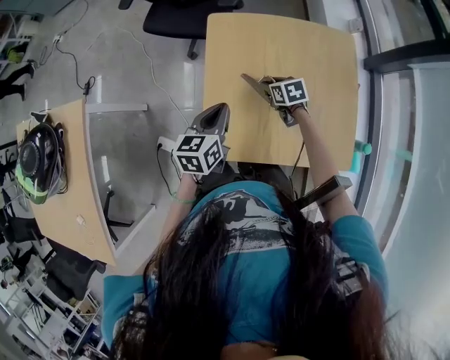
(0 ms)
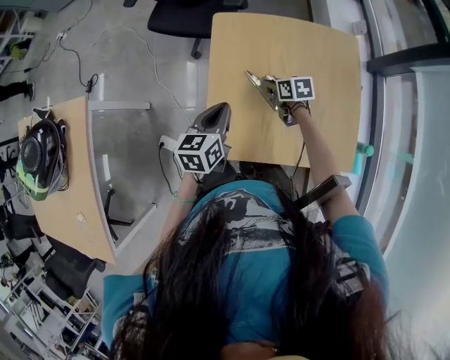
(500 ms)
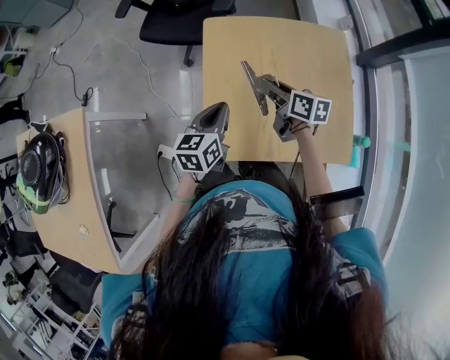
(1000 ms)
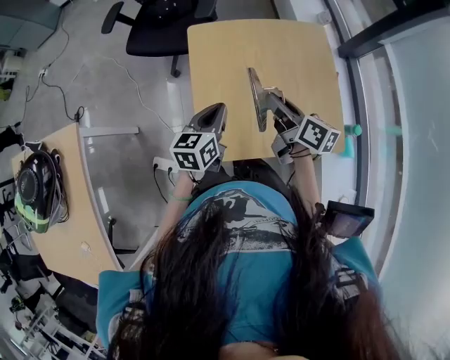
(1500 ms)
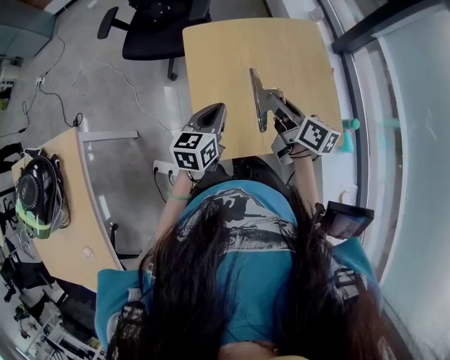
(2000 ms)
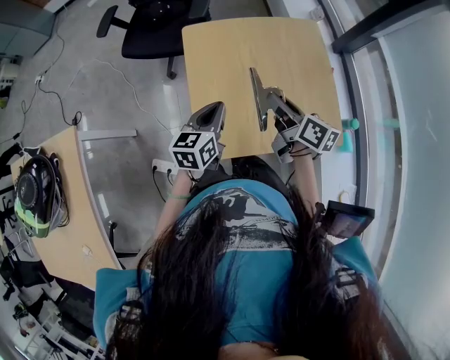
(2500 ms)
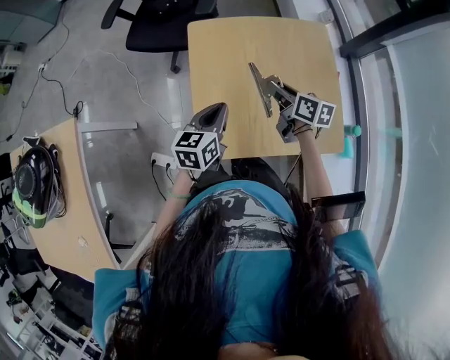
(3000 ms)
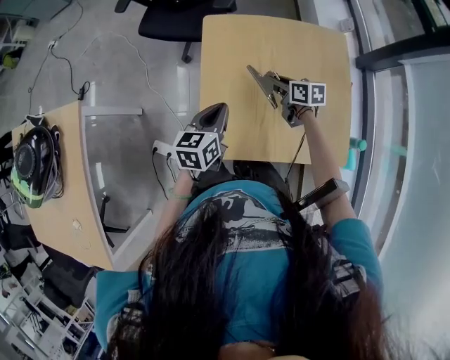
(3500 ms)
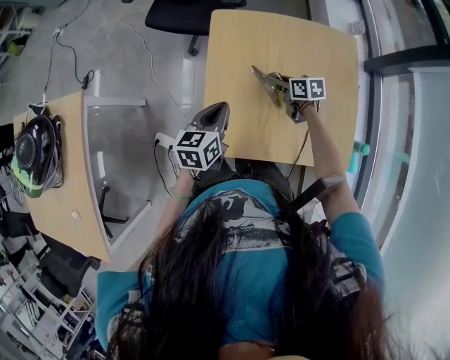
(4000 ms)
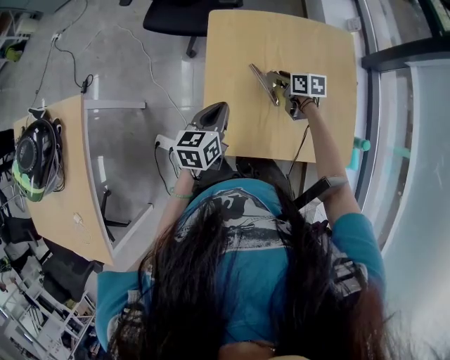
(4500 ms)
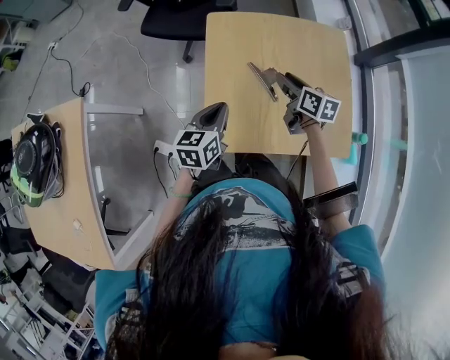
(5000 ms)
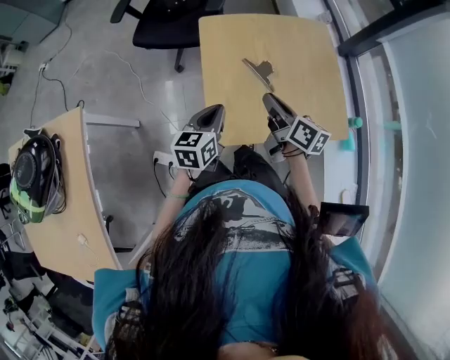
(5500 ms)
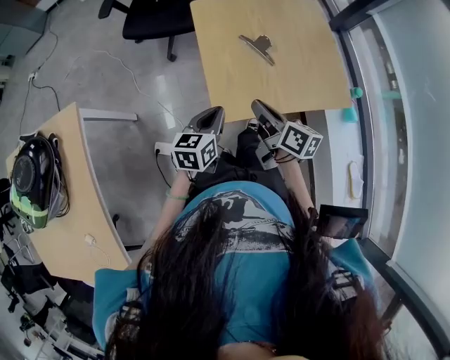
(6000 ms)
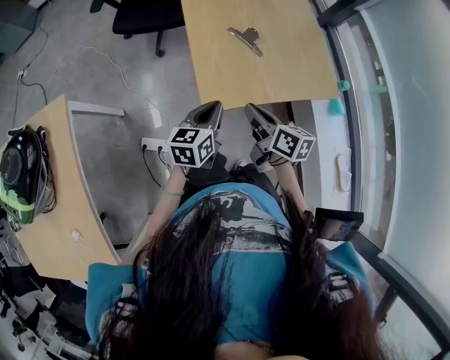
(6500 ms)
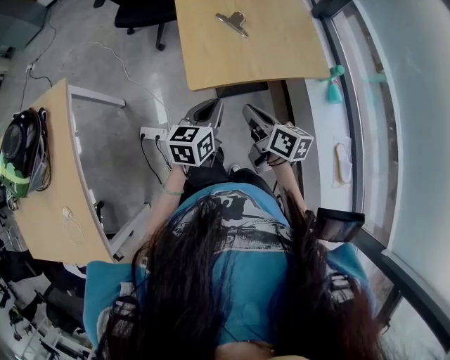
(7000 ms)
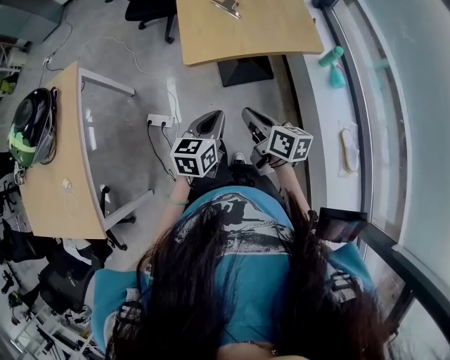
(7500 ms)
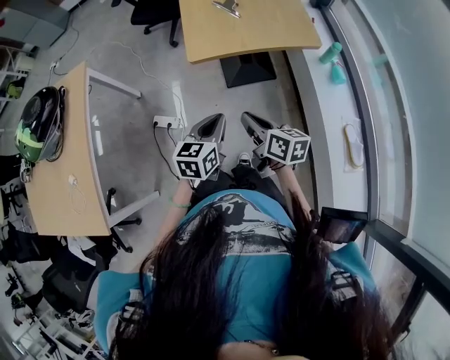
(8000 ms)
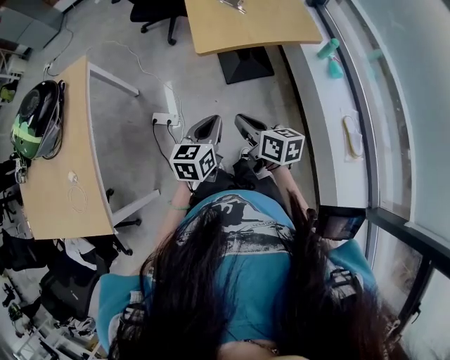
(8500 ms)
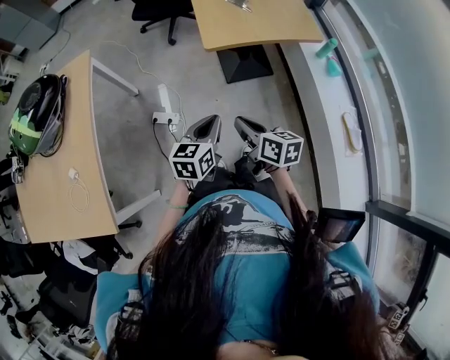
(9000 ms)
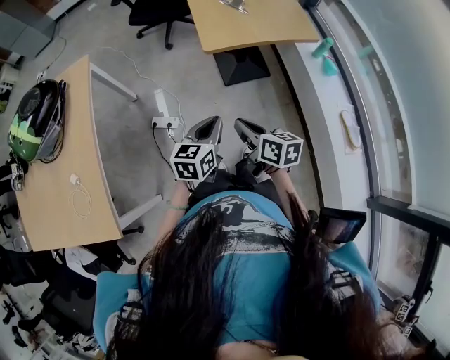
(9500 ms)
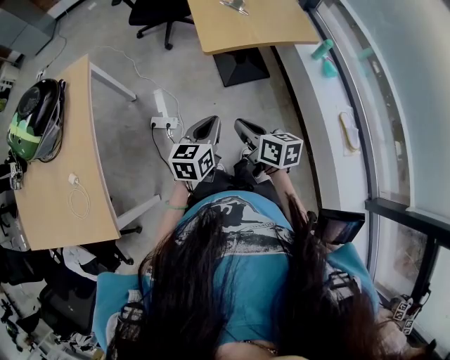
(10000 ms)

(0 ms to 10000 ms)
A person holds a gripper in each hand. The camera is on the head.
0 ms - 2000 ms: The right gripper is displaced upward and backward by about 25 cm, and tilts its fingers roughly 40 degrees upward.
2000 ms - 4000 ms: The left gripper moves some 5 cm. The right gripper heads downward and forward, covering about 25 cm, and changes its angle by roughly 40 degrees.
4000 ms - 6000 ms: The left gripper ends up about 20 cm from where it was; the right gripper ends up some 35 cm from where it was, and swivels some 40 degrees.
6000 ms - 8000 ms: The two grippers go some 35 cm backward.
8000 ms - 10000 ms: The two grippers go roughly 15 cm to the left and backward.

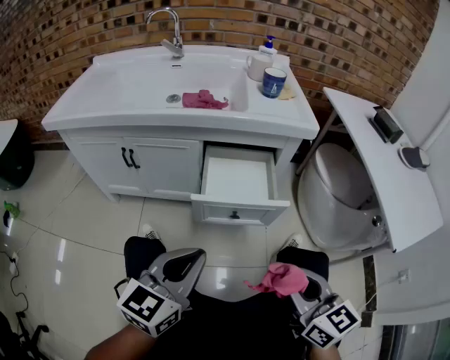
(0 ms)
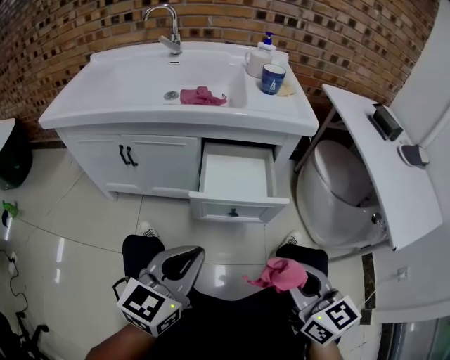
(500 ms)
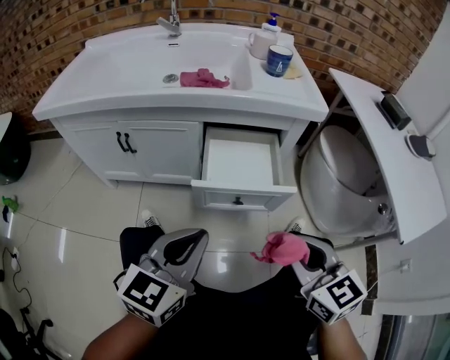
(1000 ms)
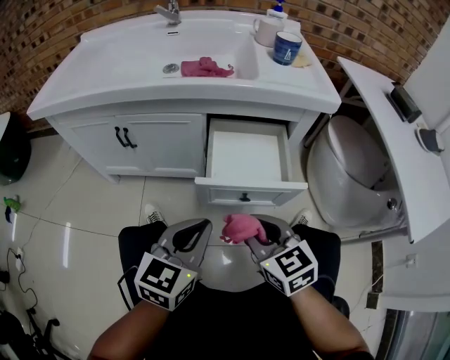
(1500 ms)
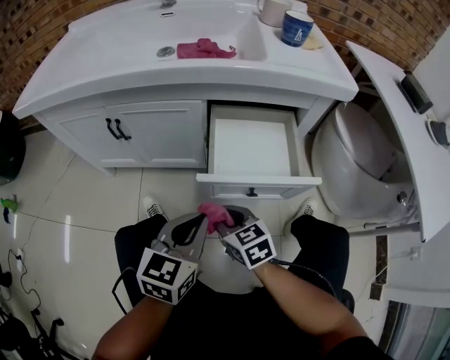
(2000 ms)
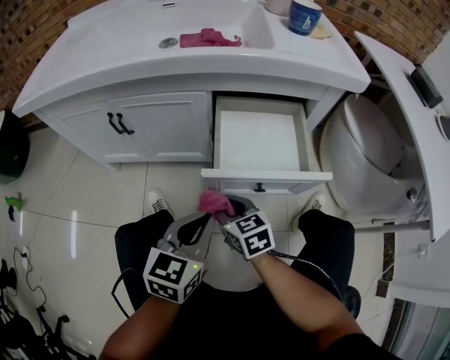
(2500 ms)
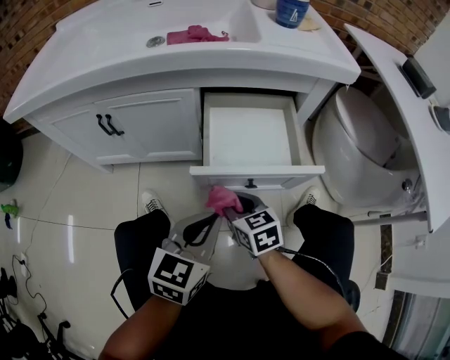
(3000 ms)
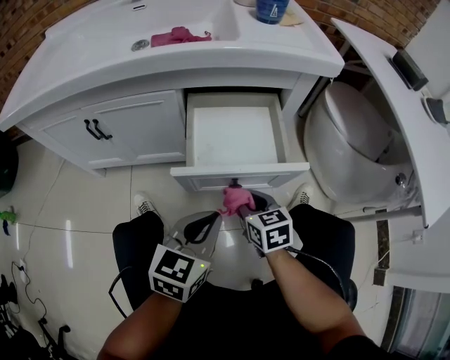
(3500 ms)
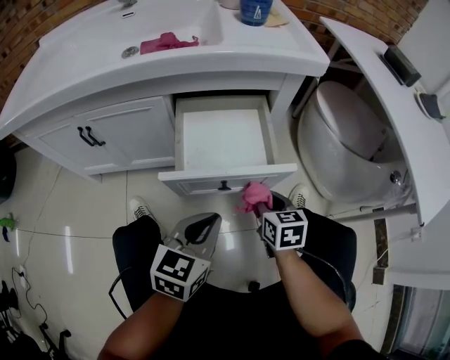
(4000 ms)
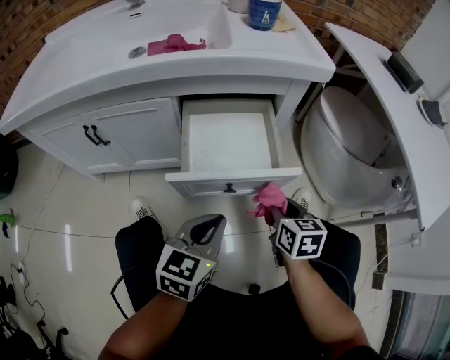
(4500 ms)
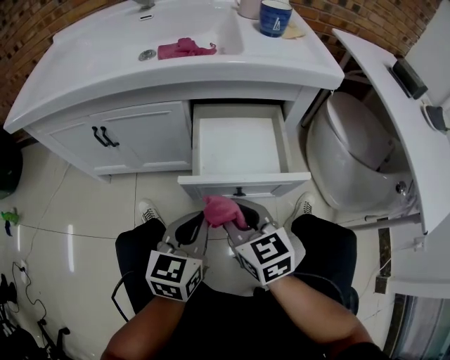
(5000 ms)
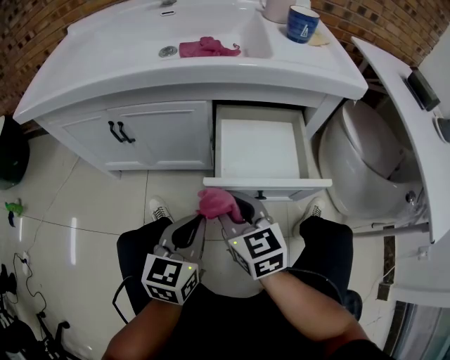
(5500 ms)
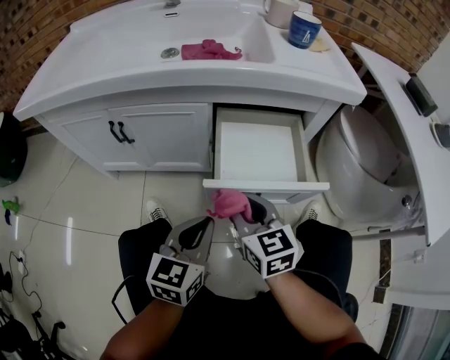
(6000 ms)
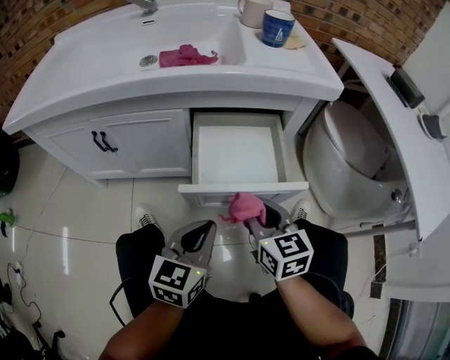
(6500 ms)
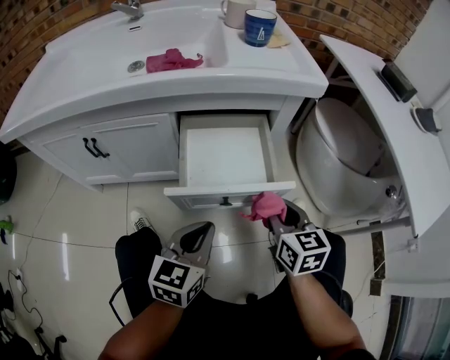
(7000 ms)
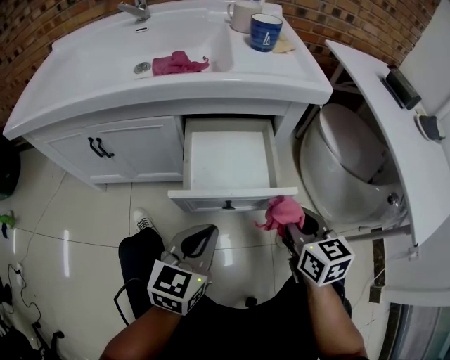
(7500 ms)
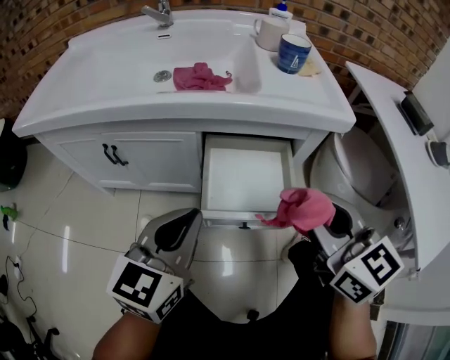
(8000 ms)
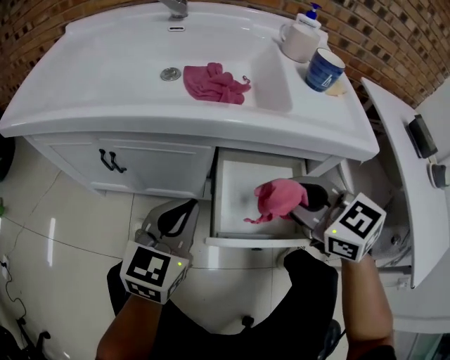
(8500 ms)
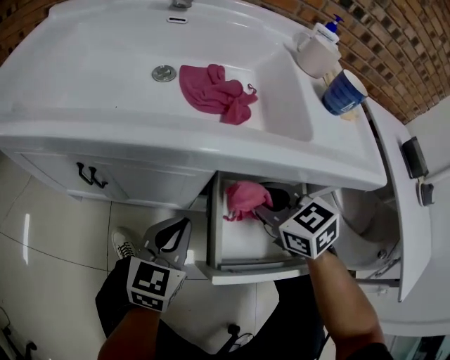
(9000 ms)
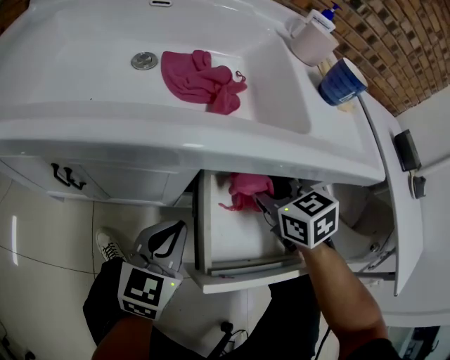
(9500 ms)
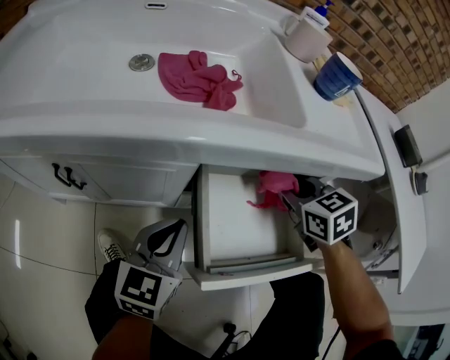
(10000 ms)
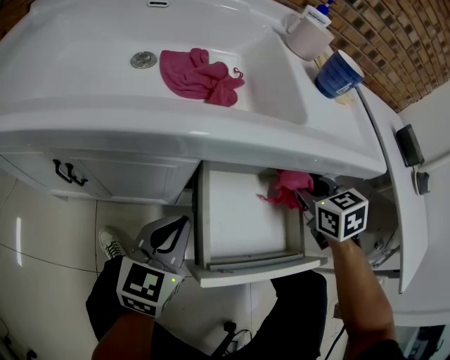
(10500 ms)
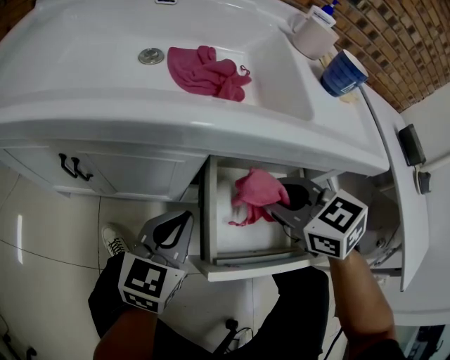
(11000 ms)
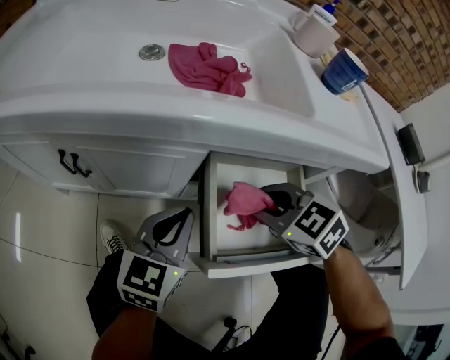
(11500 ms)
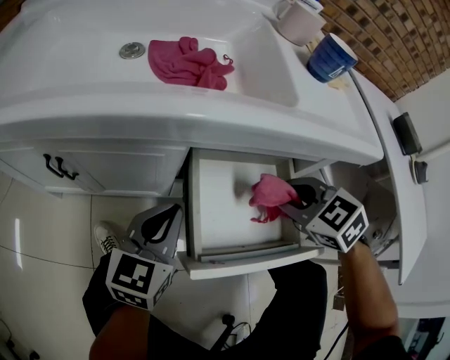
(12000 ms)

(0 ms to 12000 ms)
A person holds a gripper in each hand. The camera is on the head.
0 ms - 2000 ms: The right gripper is displaced downward, to the left and forward by some 35 cm, and swivels some 20 degrees; the left gripper travels downward and forward by about 15 cm.
2000 ms - 4000 ms: The right gripper shifts approximately 20 cm to the right, and turns by about 30 degrees. Meanwhile the left gripper travels to the right by approximately 10 cm.
4000 ms - 6000 ms: The left gripper shifts approximately 10 cm to the left. The right gripper is displaced to the left and upward by some 20 cm, and swivels some 20 degrees.
6000 ms - 8000 ms: The left gripper travels upward and forward by roughly 15 cm. Meanwhile the right gripper travels upward and to the right by about 25 cm.
8000 ms - 10000 ms: The right gripper travels forward and downward by approximately 25 cm, and points its fingers some 30 degrees further downward, while the left gripper goes approximately 20 cm downward and forward.
10000 ms - 12000 ms: The right gripper swings left and right, roughly 15 cm each way, with 2 reversals, and turns by about 20 degrees.

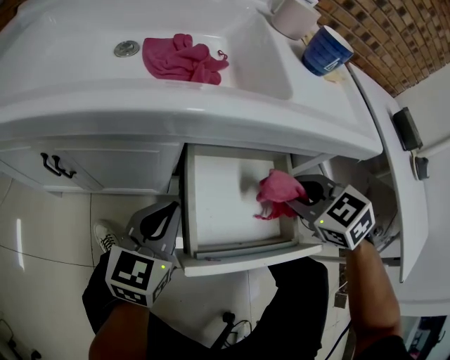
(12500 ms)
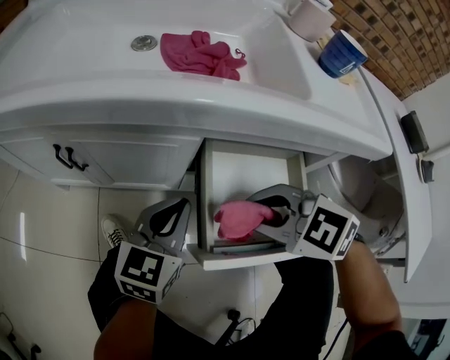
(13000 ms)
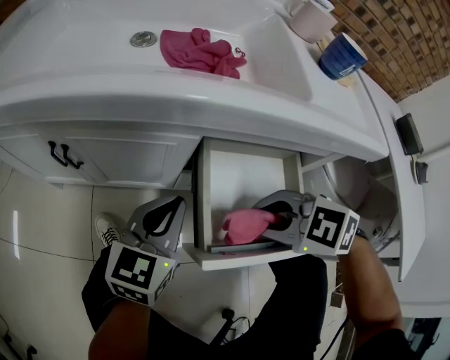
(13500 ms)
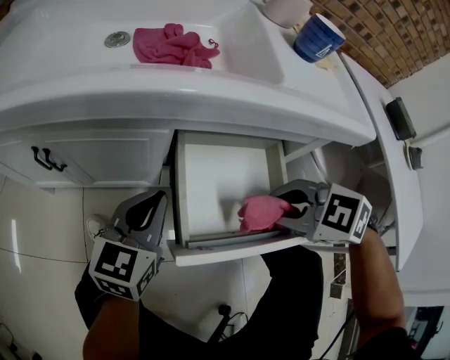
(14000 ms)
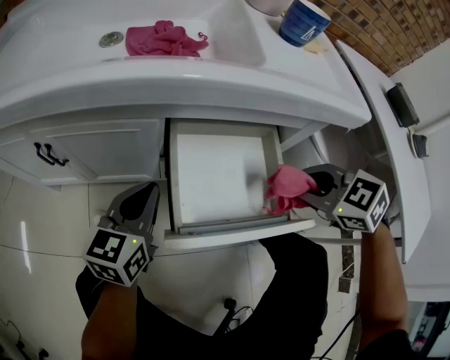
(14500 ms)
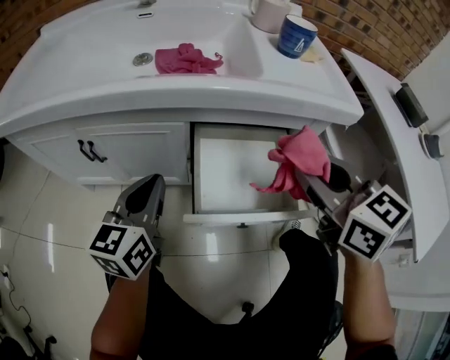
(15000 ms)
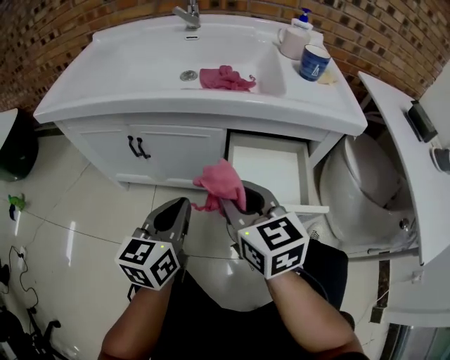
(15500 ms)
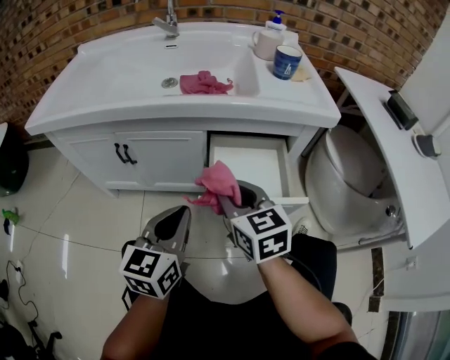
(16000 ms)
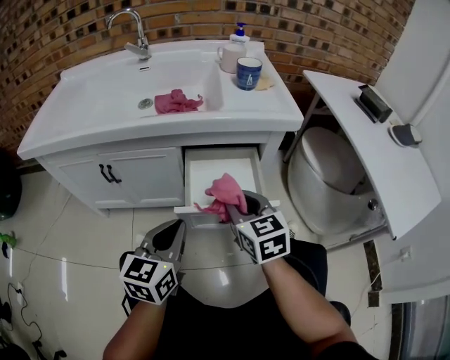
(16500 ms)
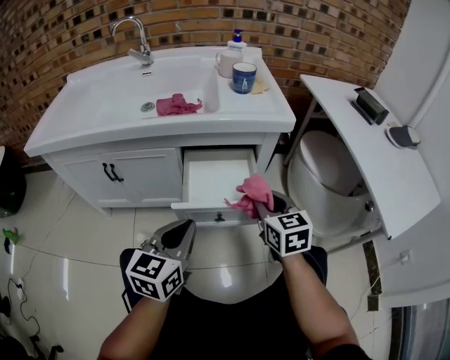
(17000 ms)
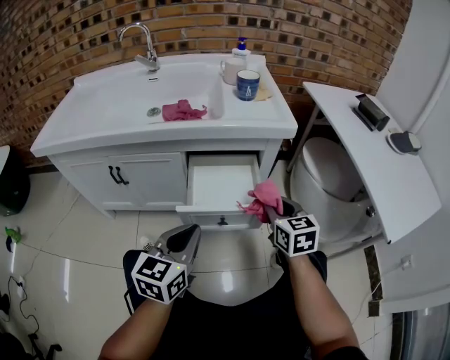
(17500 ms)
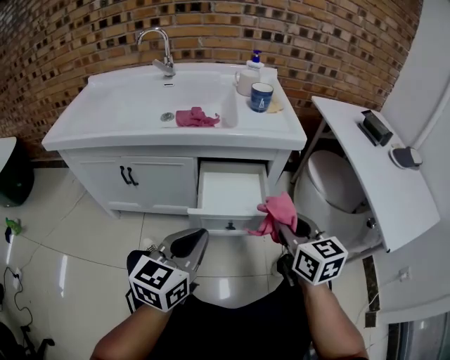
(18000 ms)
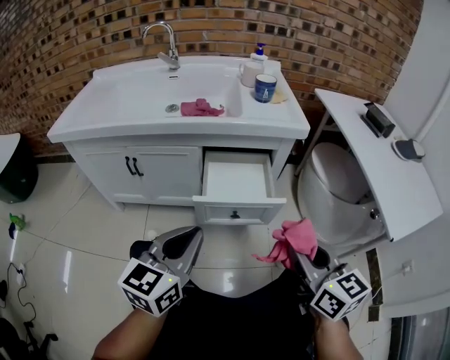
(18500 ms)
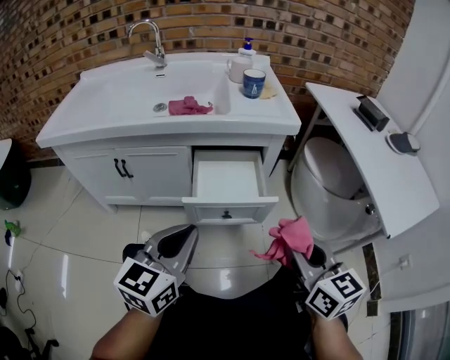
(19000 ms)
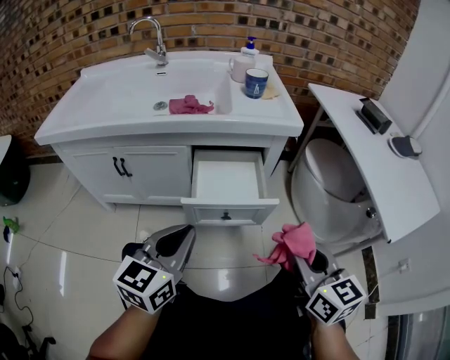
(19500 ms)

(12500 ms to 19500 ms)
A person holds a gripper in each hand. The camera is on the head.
12500 ms - 14500 ms: The right gripper travels backward by about 5 cm, and travels to the left and back again, roughly 15 cm each way.
14500 ms - 16000 ms: The left gripper shifts about 20 cm backward and upward, while the right gripper heads to the left, covering roughly 20 cm, and tips its fingers upward by about 30 degrees.
16000 ms - 17500 ms: The right gripper moves to the right, approximately 20 cm. Meanwhile the left gripper moves to the right, about 10 cm.
17500 ms - 19500 ms: The right gripper moves backward and upward, some 20 cm.
